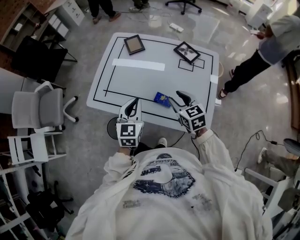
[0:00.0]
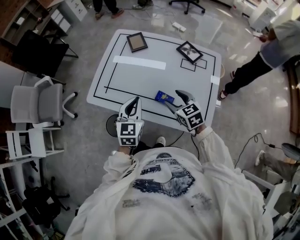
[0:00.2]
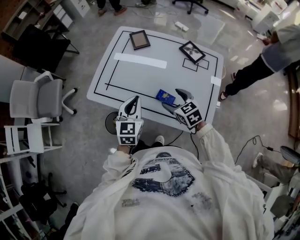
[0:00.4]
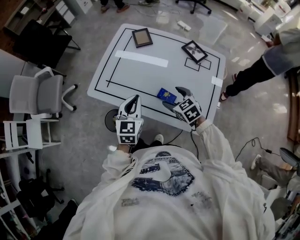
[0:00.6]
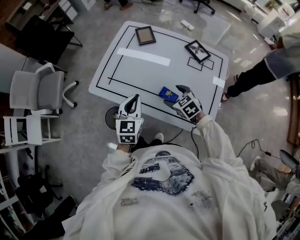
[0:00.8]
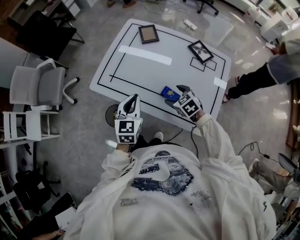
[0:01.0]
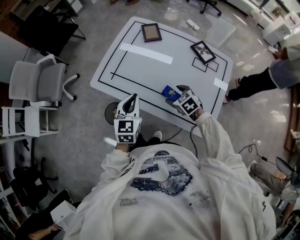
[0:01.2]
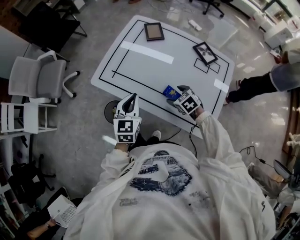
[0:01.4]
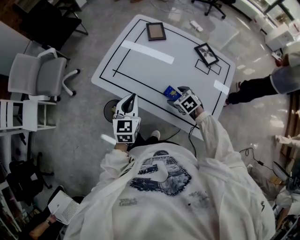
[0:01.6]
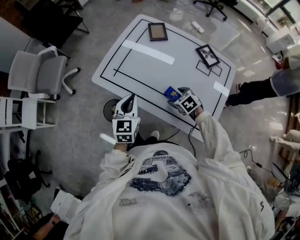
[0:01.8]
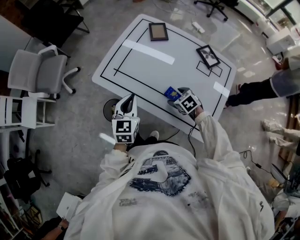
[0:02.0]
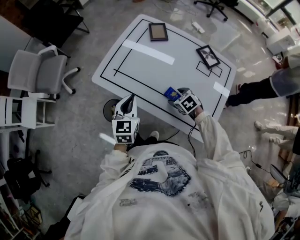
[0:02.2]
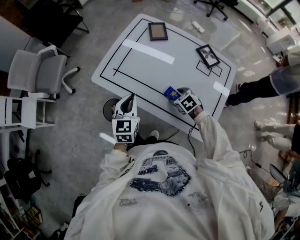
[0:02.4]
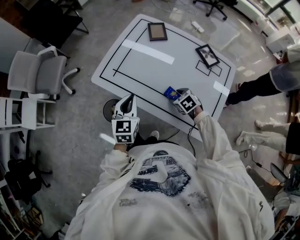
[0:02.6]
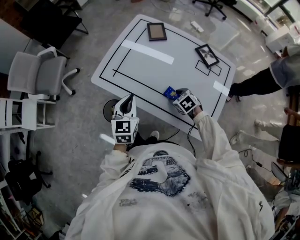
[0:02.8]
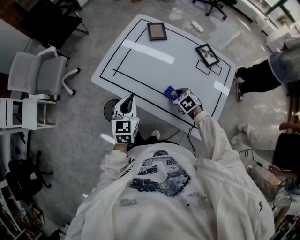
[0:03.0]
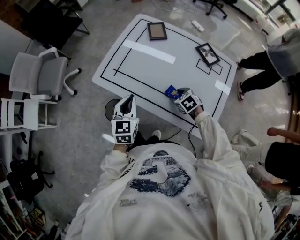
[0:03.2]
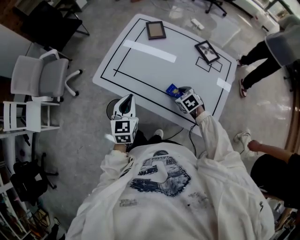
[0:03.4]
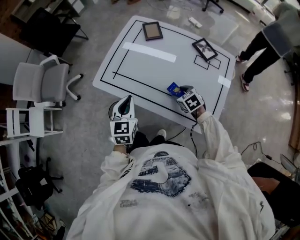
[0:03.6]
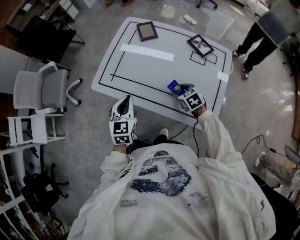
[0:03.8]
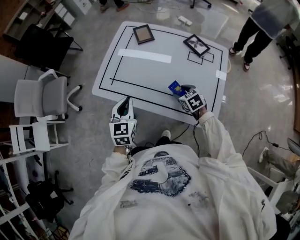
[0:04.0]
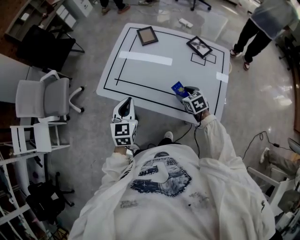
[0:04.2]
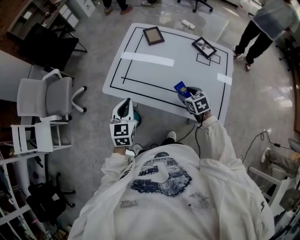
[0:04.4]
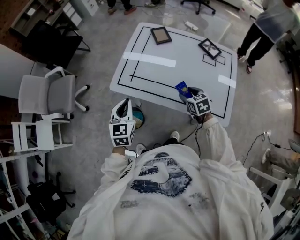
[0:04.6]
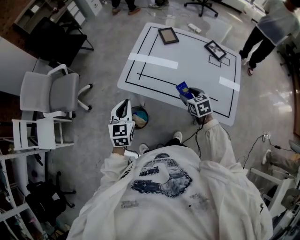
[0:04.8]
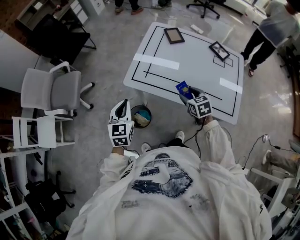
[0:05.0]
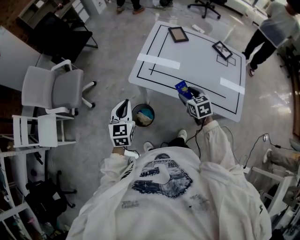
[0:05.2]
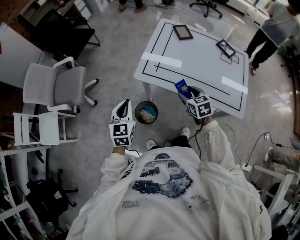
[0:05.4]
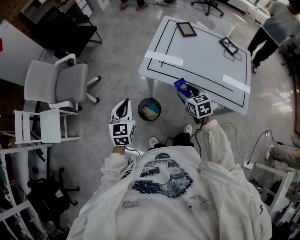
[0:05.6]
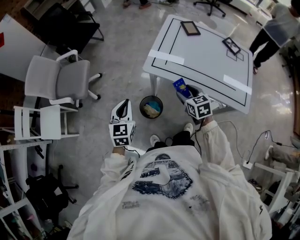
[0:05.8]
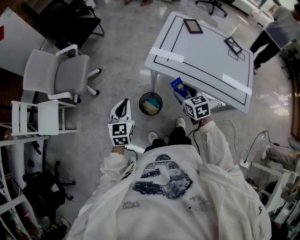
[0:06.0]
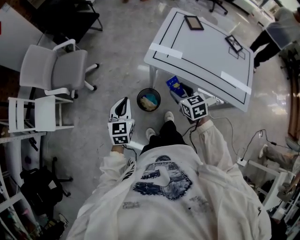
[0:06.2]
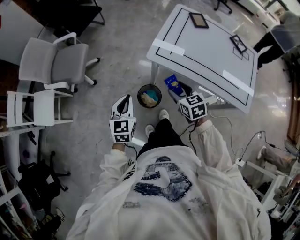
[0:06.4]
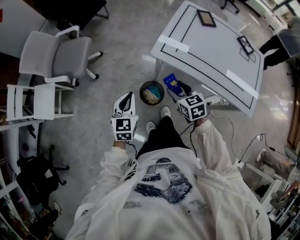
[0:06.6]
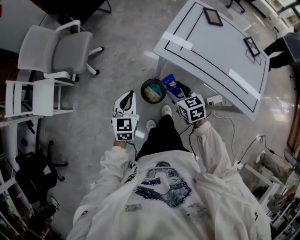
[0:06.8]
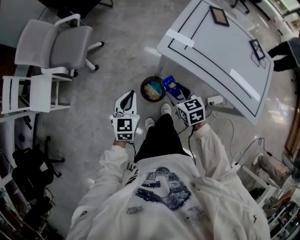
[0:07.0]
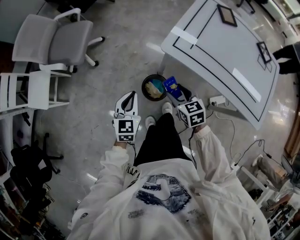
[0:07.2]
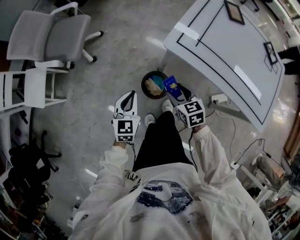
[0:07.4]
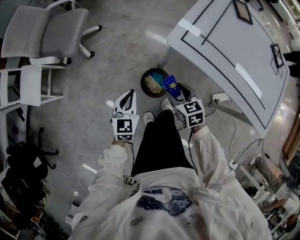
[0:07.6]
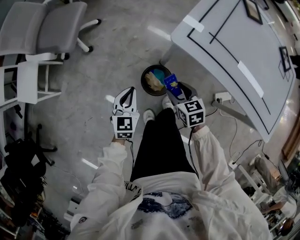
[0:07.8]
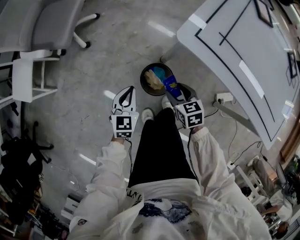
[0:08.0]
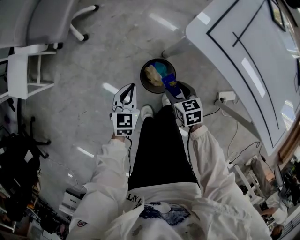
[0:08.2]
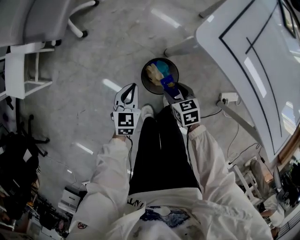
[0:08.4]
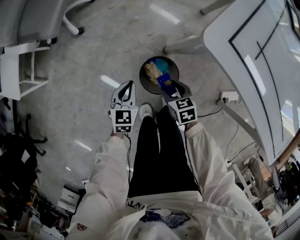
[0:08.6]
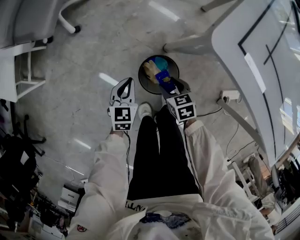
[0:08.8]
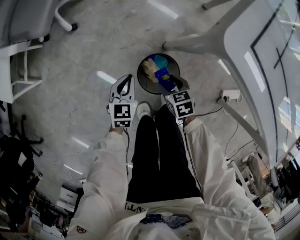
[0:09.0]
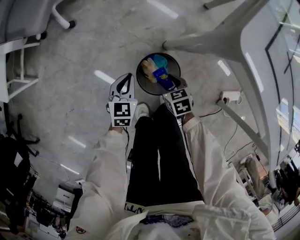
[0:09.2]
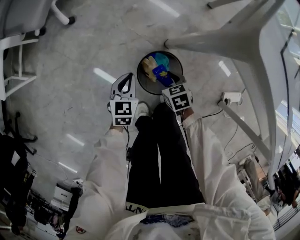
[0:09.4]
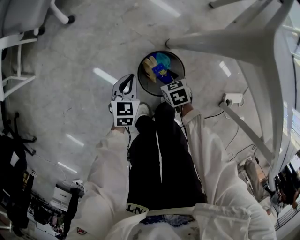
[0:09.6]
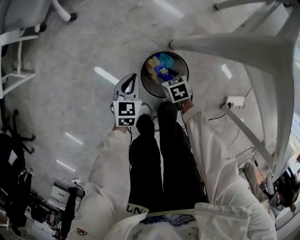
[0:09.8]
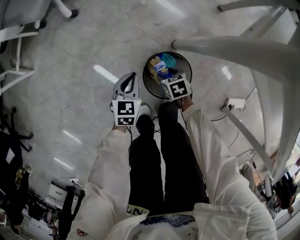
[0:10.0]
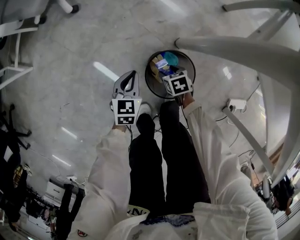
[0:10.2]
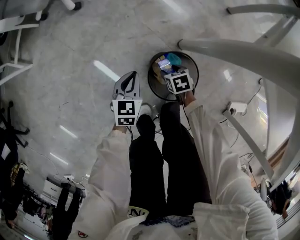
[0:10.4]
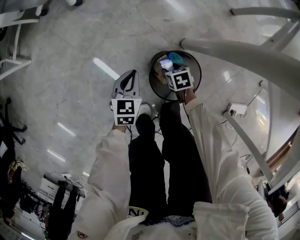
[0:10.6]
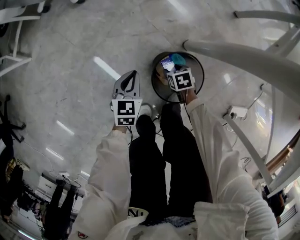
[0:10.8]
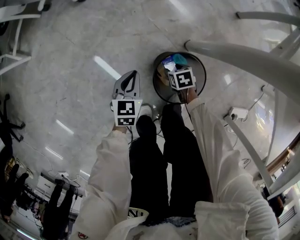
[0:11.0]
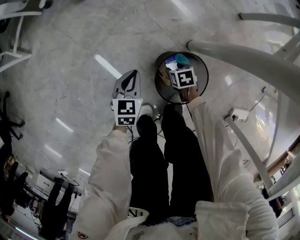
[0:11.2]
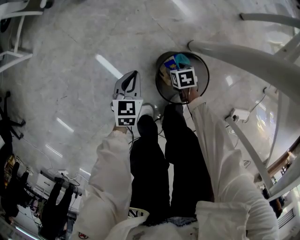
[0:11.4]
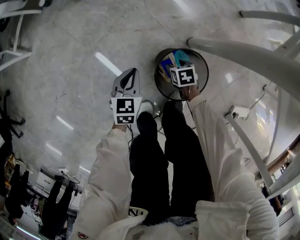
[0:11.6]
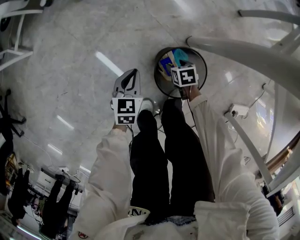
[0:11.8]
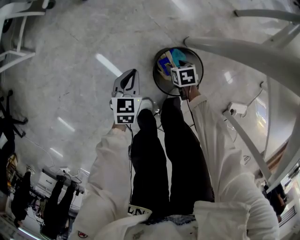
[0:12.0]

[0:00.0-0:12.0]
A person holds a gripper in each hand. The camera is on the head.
0.0 to 1.6 s: The right gripper heads downward, covering about 15 cm, rotates about 40 degrees, and opens up; the left gripper heads to the left, covering roughly 5 cm.
1.6 to 3.0 s: Both grippers stay about where they are.
3.0 to 4.4 s: The right gripper goes about 5 cm upward, and rotates roughly 30 degrees. The left gripper is displaced to the left by approximately 5 cm.
4.4 to 6.0 s: The grippers both shift to the left by approximately 30 cm.
6.0 to 7.6 s: The left gripper heads downward, covering roughly 20 cm; the right gripper heads downward and to the left, covering about 25 cm.
7.6 to 9.0 s: Both grippers travel together downward, approximately 30 cm.
9.0 to 10.4 s: The right gripper moves downward, roughly 20 cm, while the left gripper travels downward by approximately 15 cm.
10.4 to 12.0 s: The grippers move only a little.

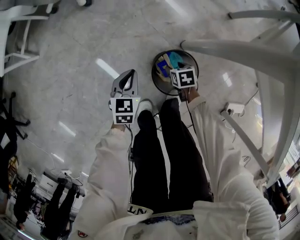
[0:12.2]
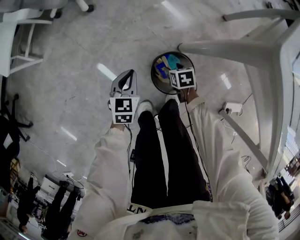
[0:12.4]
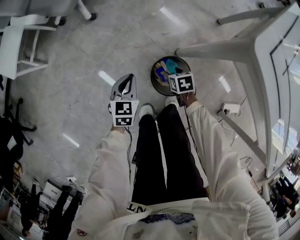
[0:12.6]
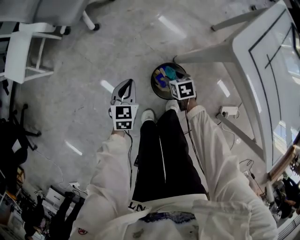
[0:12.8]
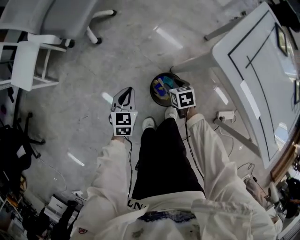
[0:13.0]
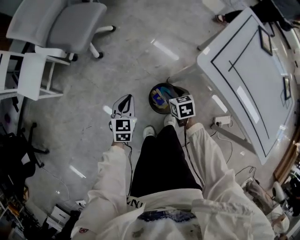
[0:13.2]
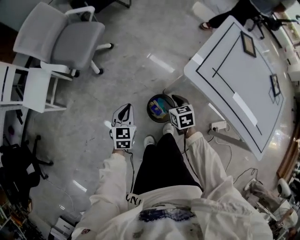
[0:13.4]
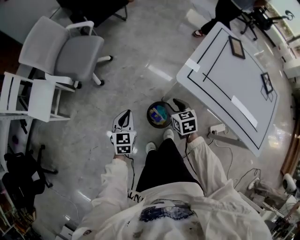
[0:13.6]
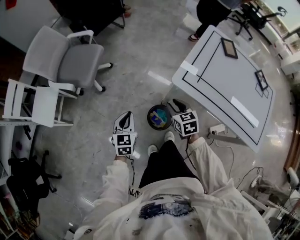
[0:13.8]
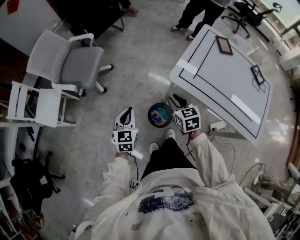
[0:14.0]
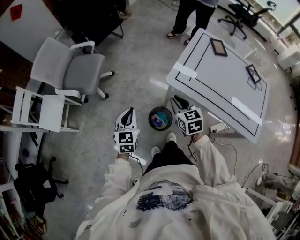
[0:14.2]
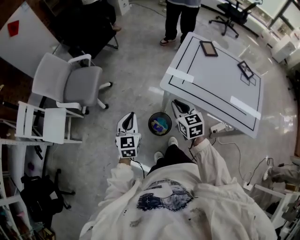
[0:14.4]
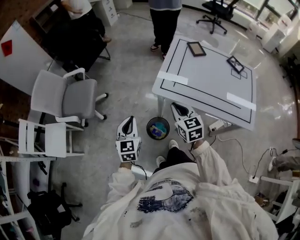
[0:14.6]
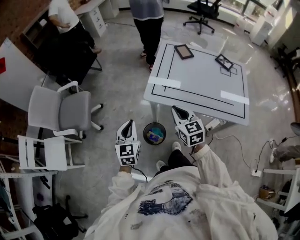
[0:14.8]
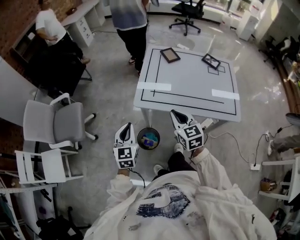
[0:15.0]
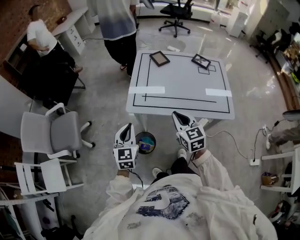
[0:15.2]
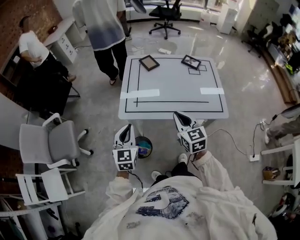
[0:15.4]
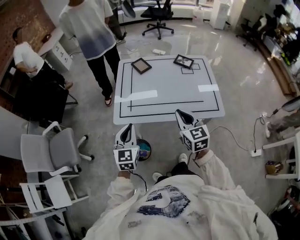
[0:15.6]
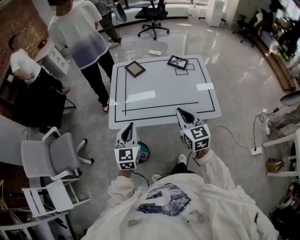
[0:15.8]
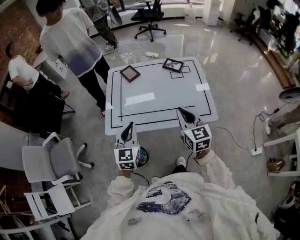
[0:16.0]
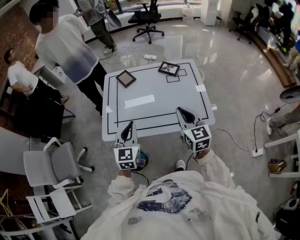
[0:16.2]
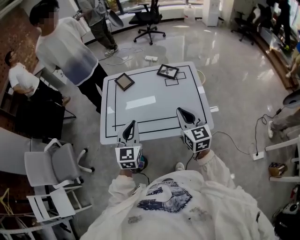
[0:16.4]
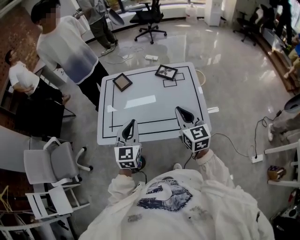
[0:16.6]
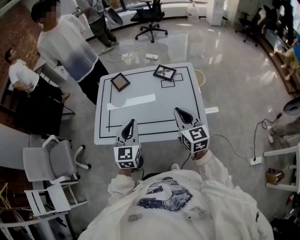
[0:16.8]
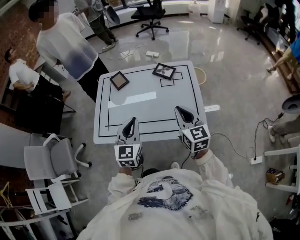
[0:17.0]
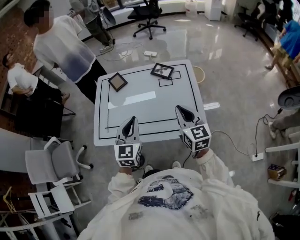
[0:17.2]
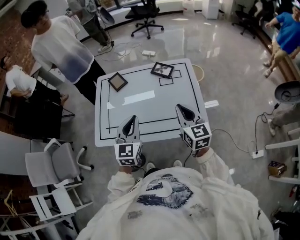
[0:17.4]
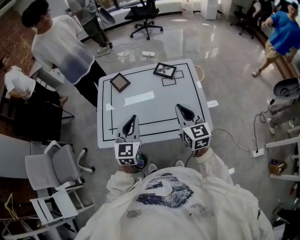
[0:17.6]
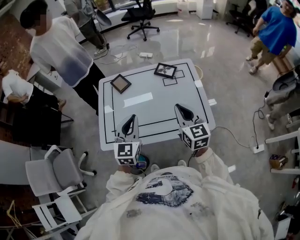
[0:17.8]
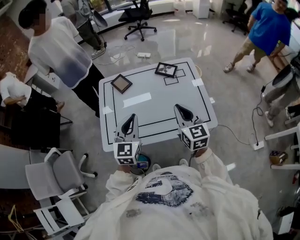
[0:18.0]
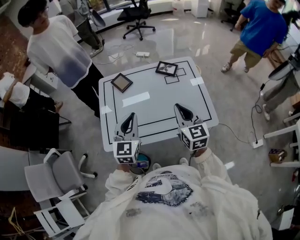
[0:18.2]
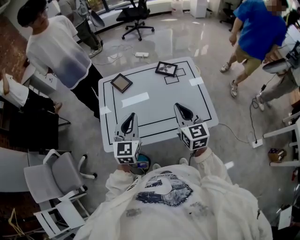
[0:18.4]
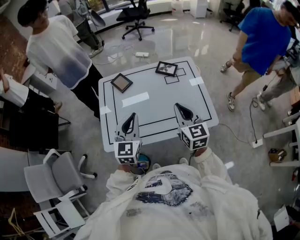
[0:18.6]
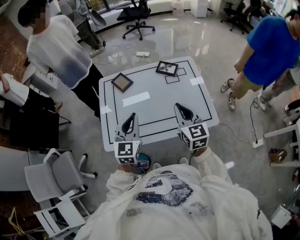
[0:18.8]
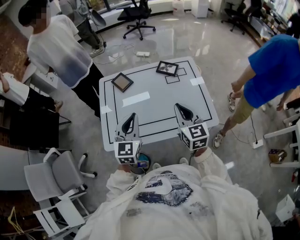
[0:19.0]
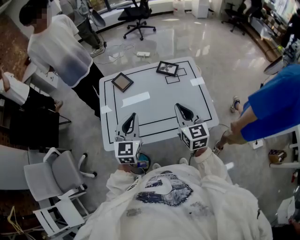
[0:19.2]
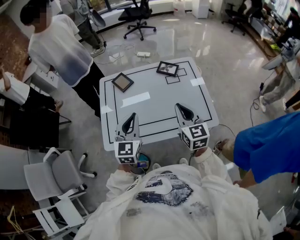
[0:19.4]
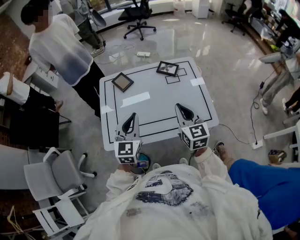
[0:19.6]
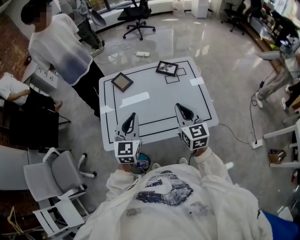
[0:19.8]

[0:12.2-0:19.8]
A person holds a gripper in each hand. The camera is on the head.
12.2 to 13.8 s: The two grippers go approximately 50 cm upward. The right gripper points its fingers approximately 30 degrees further upward.
13.8 to 15.2 s: The right gripper ends up approximately 30 cm from where it was, and rotates about 30 degrees. Meanwhile the left gripper ends up roughly 30 cm from where it was, and rotates some 30 degrees.
15.2 to 16.8 s: The left gripper is displaced to the right and forward by some 35 cm. The right gripper heads to the right, covering some 30 cm.
16.8 to 18.2 s: The two grippers go roughly 10 cm to the left.
18.2 to 19.8 s: Neither gripper changes place.

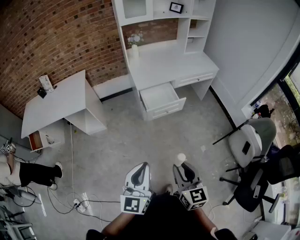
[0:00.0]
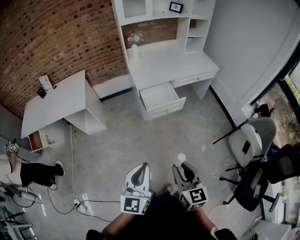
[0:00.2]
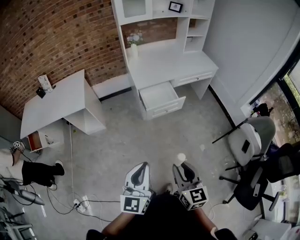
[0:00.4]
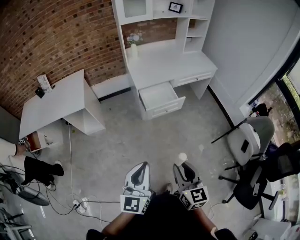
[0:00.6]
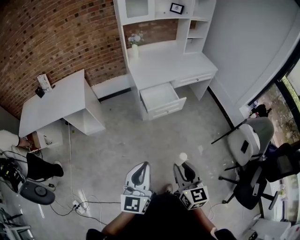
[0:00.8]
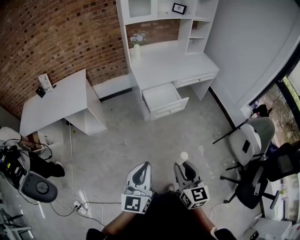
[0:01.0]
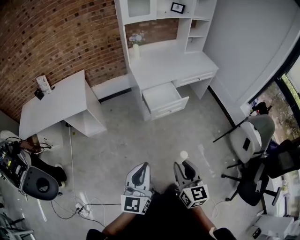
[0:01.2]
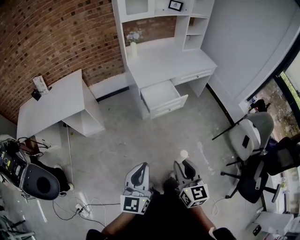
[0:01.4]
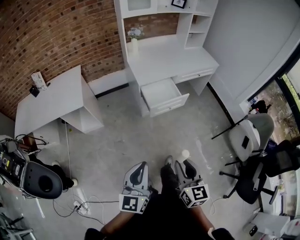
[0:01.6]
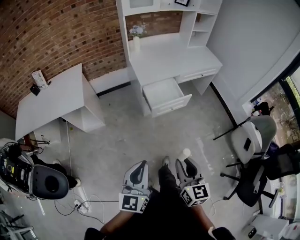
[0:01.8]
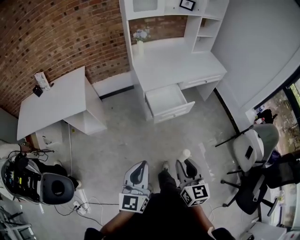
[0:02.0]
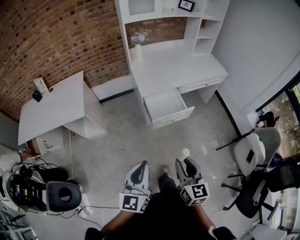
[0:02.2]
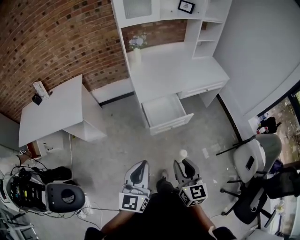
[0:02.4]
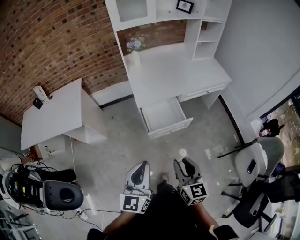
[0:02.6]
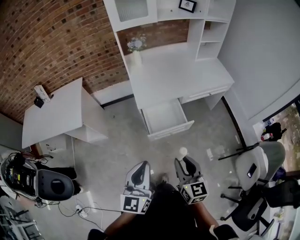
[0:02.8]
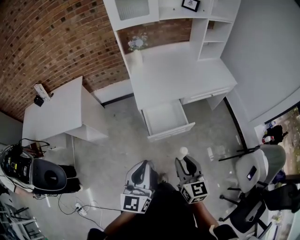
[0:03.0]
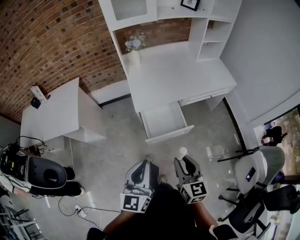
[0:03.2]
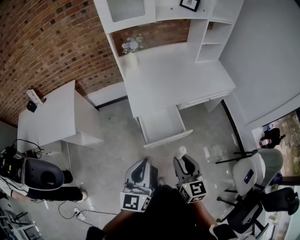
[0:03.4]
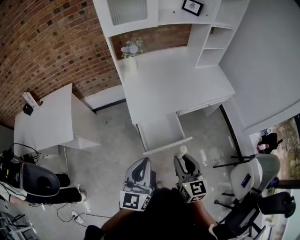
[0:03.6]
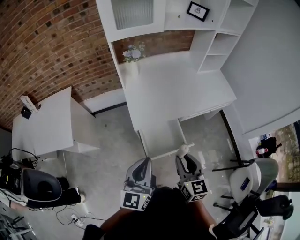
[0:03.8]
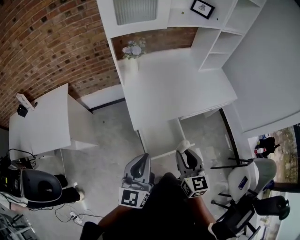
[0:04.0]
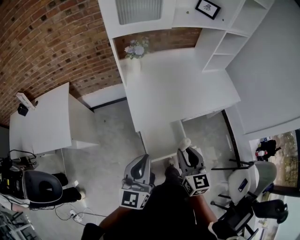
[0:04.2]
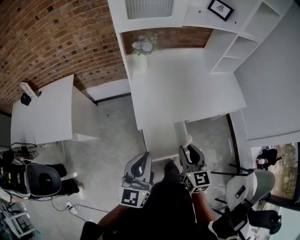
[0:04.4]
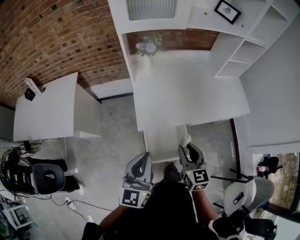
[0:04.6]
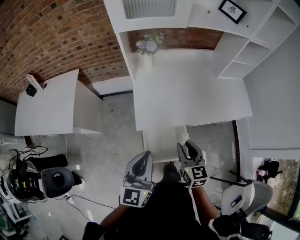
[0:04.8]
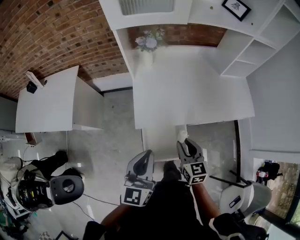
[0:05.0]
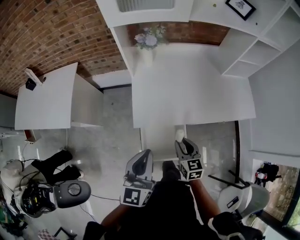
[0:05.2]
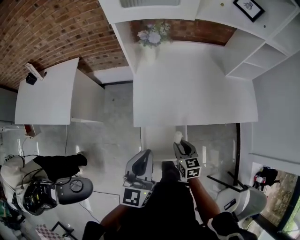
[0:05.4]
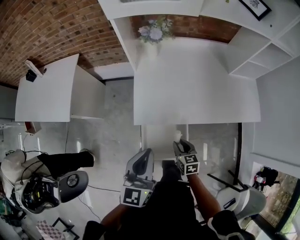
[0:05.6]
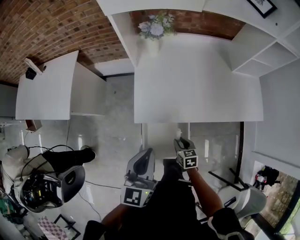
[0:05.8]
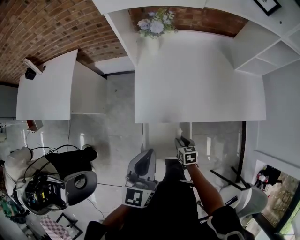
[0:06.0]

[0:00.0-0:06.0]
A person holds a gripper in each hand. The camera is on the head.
0.0 to 1.6 s: Both grippers travel together to the left, approximately 10 cm.
1.6 to 3.0 s: The left gripper heads forward and to the right, covering roughly 30 cm. Meanwhile the right gripper is displaced forward by some 30 cm.
3.0 to 4.4 s: The two grippers go roughly 30 cm forward.
4.4 to 6.0 s: The right gripper moves downward, roughly 35 cm, and tips its fingers downward by some 30 degrees; the left gripper heads to the right, forward and downward, covering some 15 cm.
